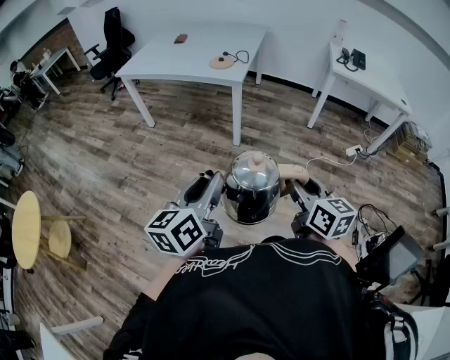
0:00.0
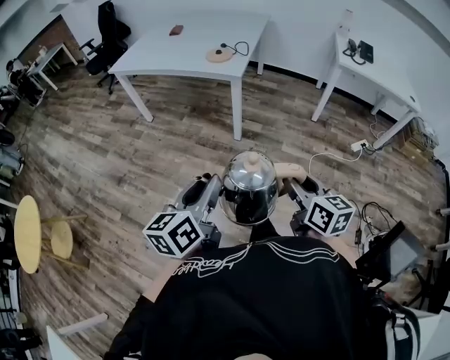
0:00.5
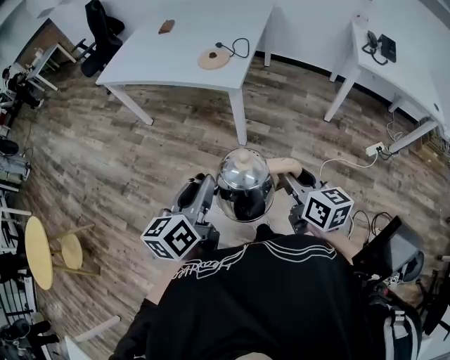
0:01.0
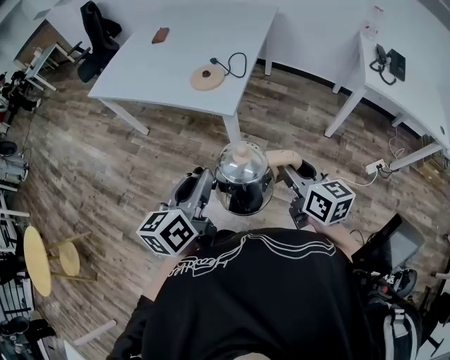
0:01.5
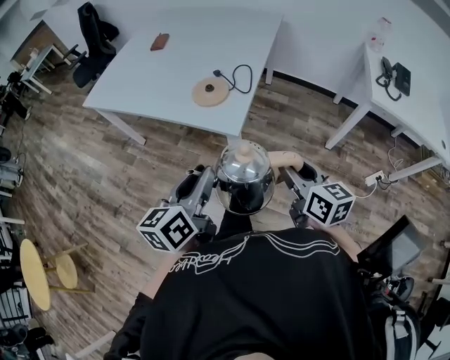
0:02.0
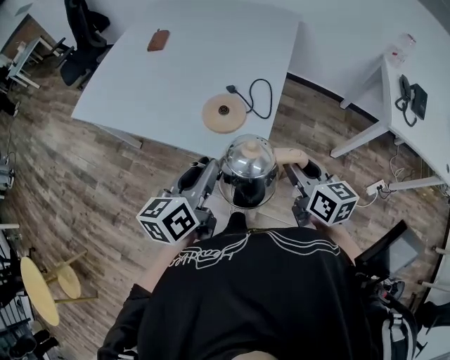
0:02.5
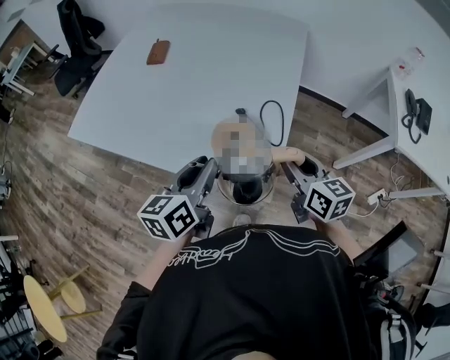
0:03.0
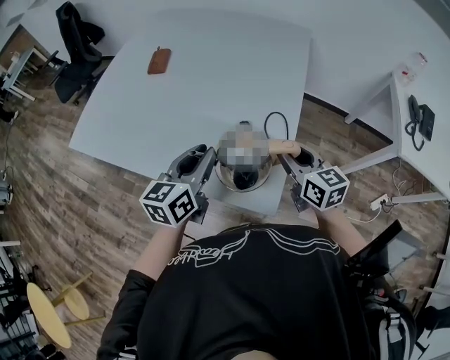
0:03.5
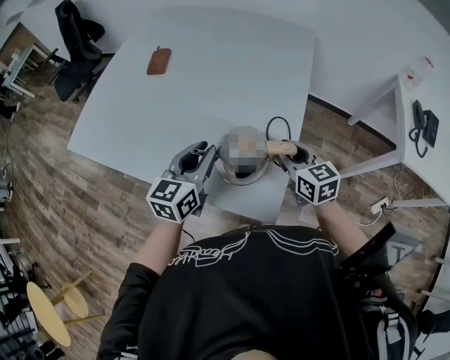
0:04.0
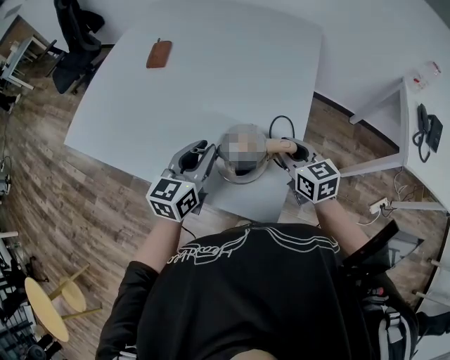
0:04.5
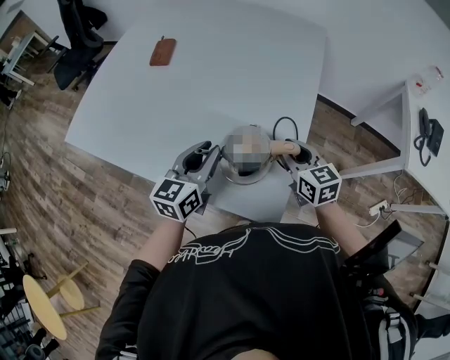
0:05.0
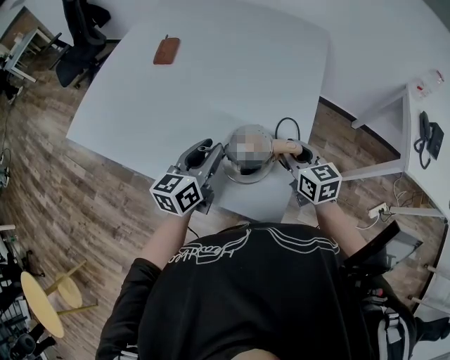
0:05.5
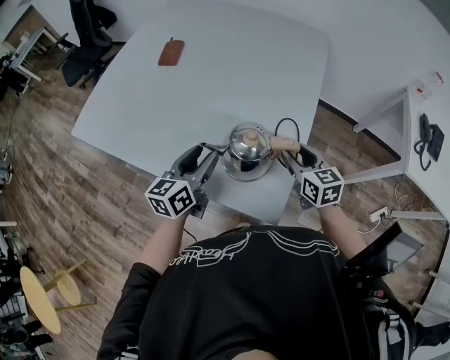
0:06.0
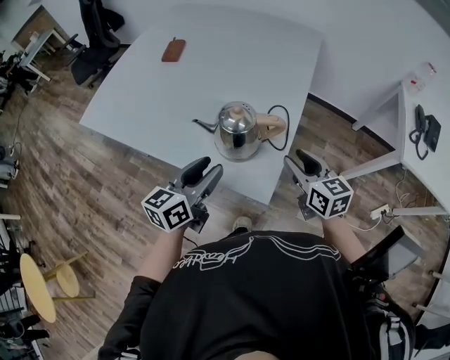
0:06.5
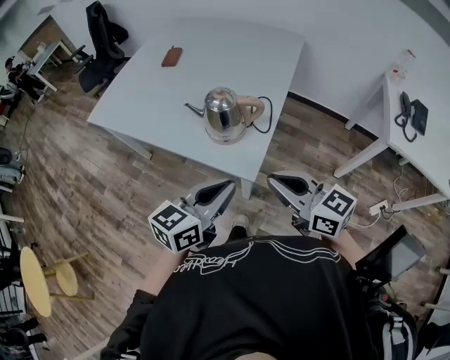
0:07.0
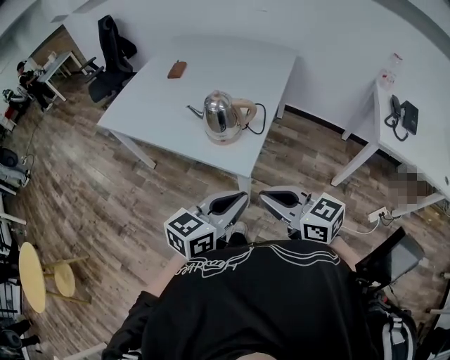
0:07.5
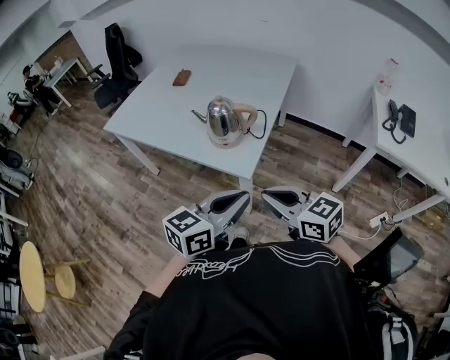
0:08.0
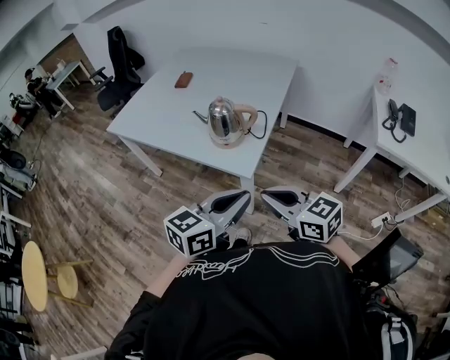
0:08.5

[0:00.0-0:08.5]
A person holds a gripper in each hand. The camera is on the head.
0:00.0 to 0:02.0: The two grippers travel together, forward, about 50 cm.
0:02.0 to 0:04.0: The two grippers travel together, forward, some 40 cm. The left gripper swivels roughly 20 degrees.
0:04.0 to 0:06.5: The two grippers go about 10 cm backward. The left gripper opens.
0:06.5 to 0:08.5: The left gripper heads backward and to the right, covering roughly 30 cm, and closes. Meanwhile the right gripper travels backward by some 30 cm, turns by some 30 degrees, and closes its fingers.

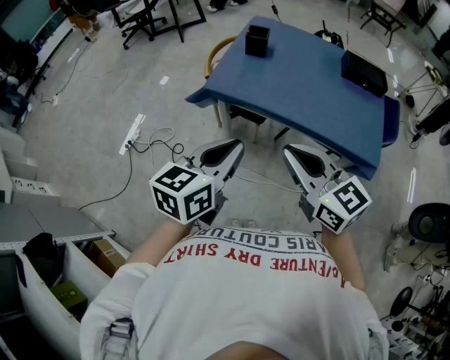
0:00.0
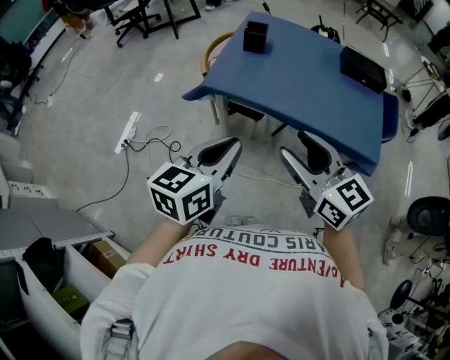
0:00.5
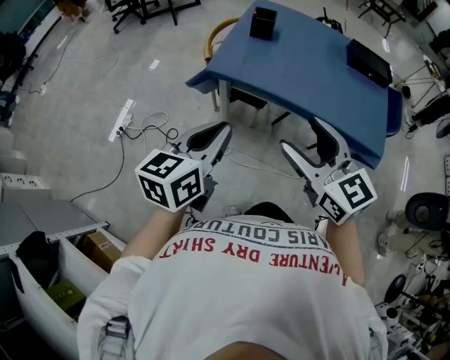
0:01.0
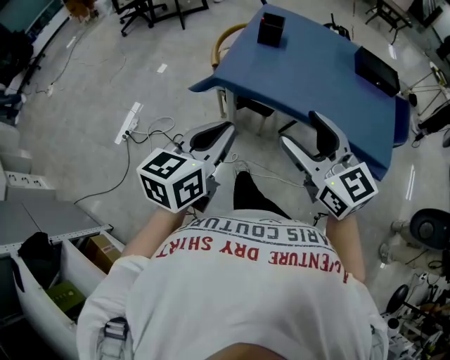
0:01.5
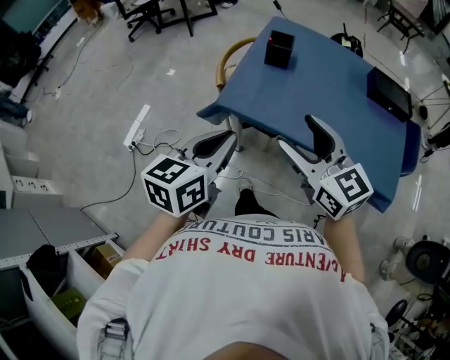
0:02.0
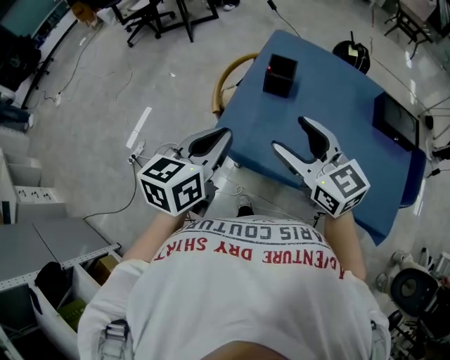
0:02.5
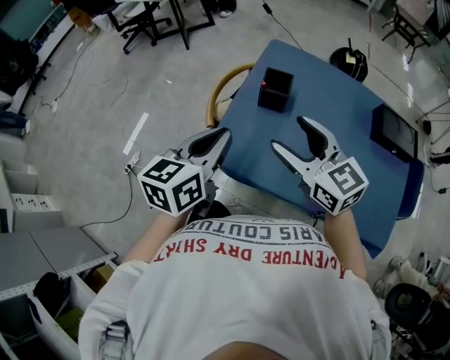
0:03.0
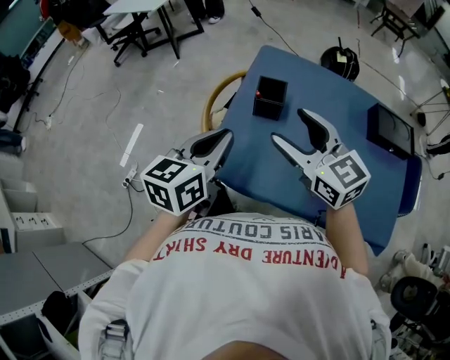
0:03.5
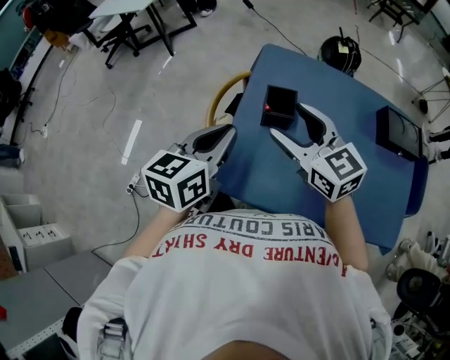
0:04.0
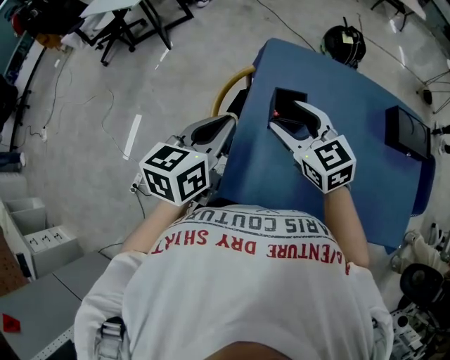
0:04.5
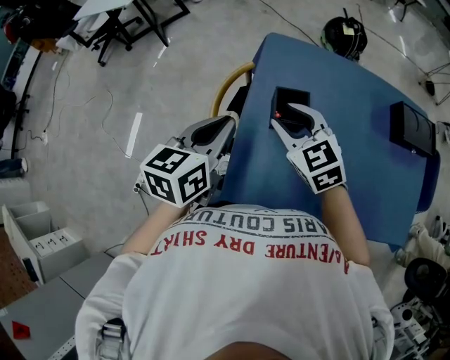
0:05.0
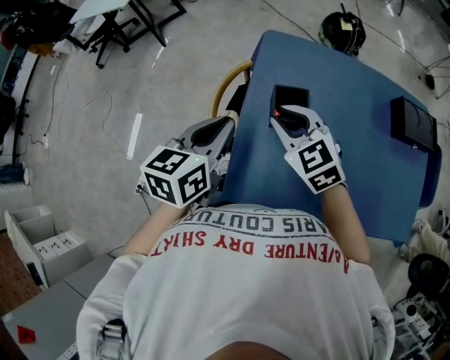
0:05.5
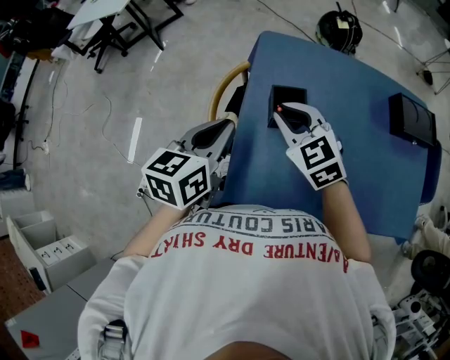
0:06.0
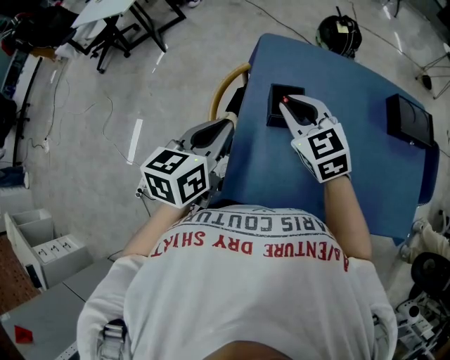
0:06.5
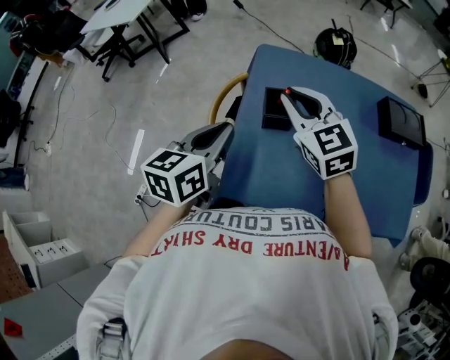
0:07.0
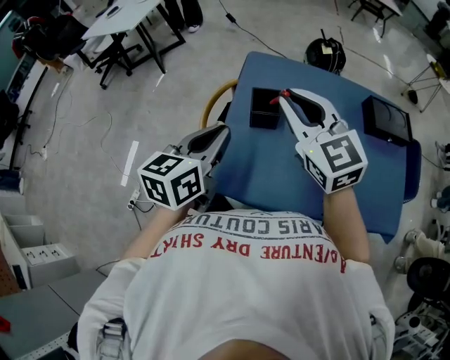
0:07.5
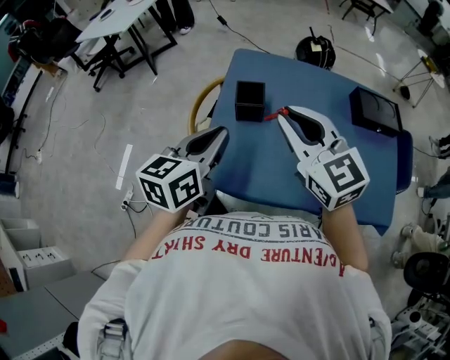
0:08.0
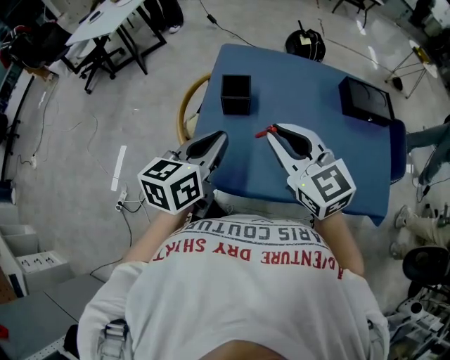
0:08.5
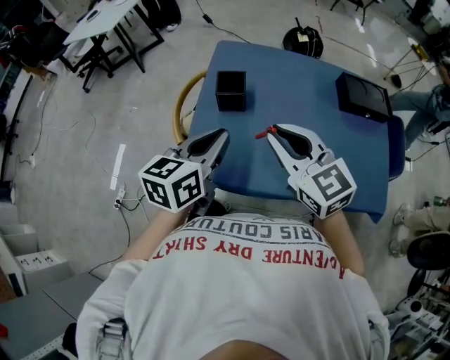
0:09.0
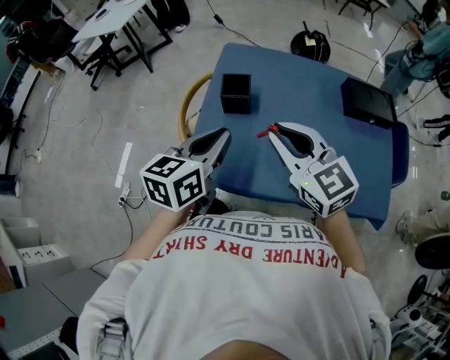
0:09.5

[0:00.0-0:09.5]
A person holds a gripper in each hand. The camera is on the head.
0:00.0 to 0:02.0: The right gripper moves forward, about 15 cm, and opens up. Meanwhile the left gripper shifts some 15 cm forward and to the left.
0:02.0 to 0:04.0: Both grippers travel together forward, roughly 30 cm.
0:04.0 to 0:05.5: The left gripper moves forward, some 5 cm, while the right gripper is displaced downward and forward by some 10 cm, changes its angle by some 20 degrees, and closes its fingers.
0:05.5 to 0:07.5: The left gripper heads backward and upward, covering about 10 cm, while the right gripper heads upward, covering about 15 cm, and turns by some 20 degrees.
0:07.5 to 0:09.5: The right gripper heads backward and to the right, covering roughly 10 cm, while the left gripper goes roughly 10 cm to the right.

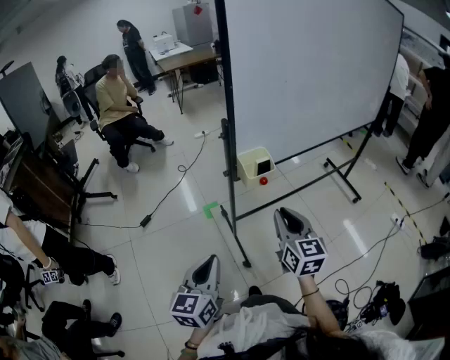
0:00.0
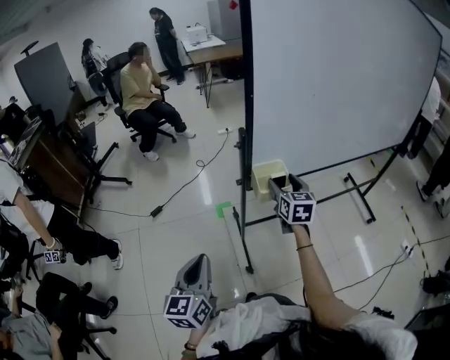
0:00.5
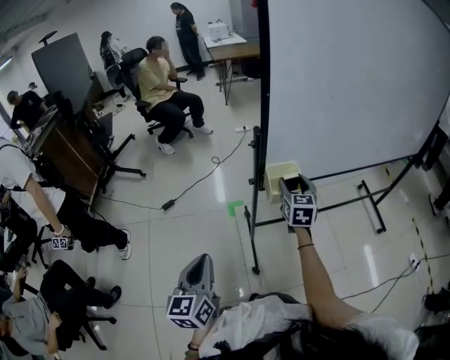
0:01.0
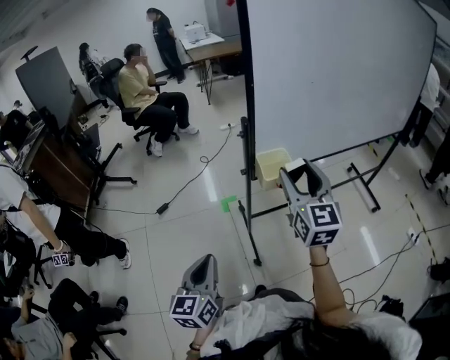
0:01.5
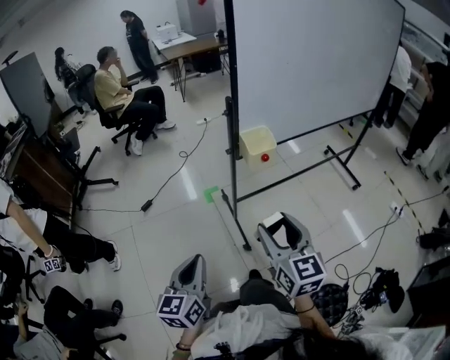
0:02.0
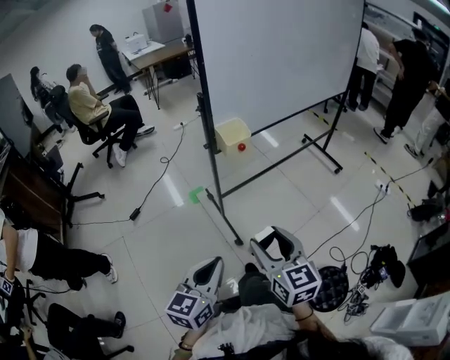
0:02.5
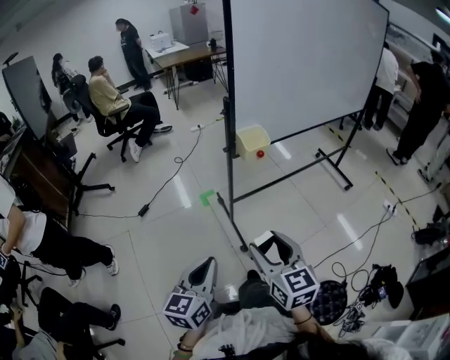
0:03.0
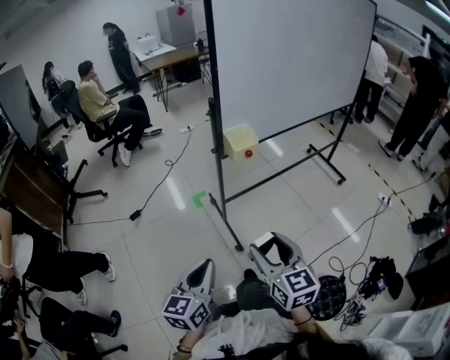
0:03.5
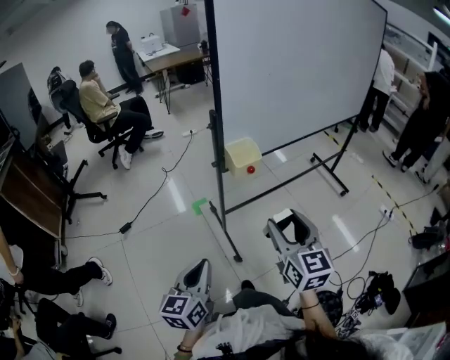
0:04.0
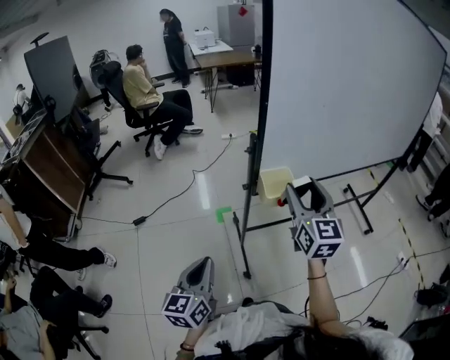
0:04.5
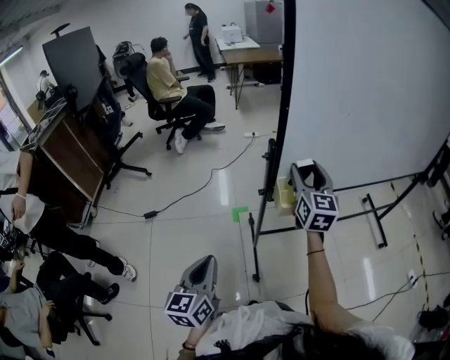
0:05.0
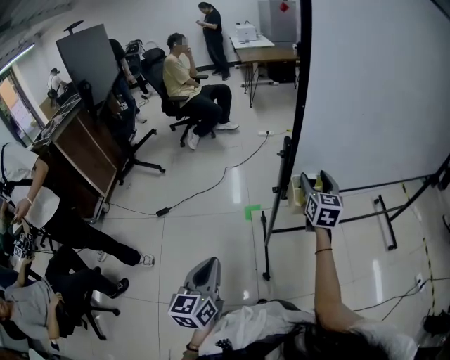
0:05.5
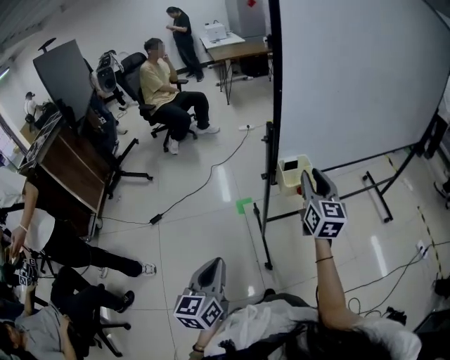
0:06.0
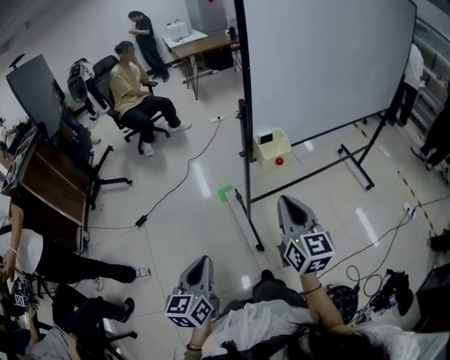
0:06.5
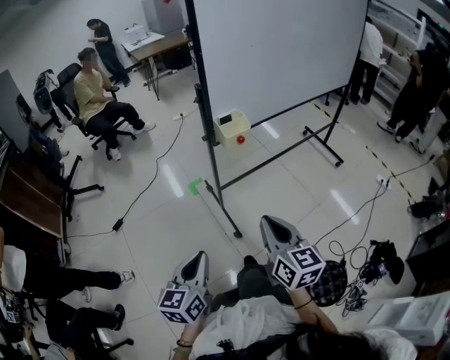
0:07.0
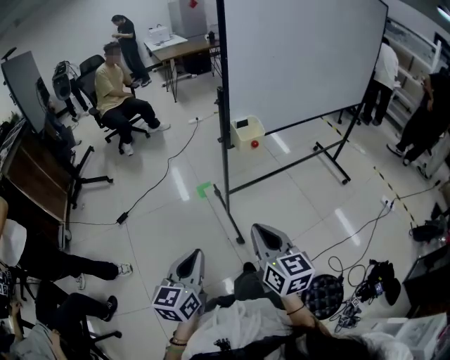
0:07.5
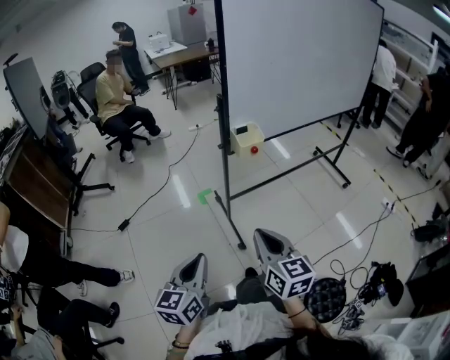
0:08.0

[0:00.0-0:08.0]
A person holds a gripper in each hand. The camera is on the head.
0:00.0 to 0:02.0: The two grippers go some 15 cm backward and to the left. The right gripper opens up.
0:02.0 to 0:04.0: The right gripper shifts approximately 5 cm to the right, and moves roughly 10 cm backward and comes back; the left gripper moves roughly 5 cm.
0:04.0 to 0:06.0: The left gripper heads forward, covering about 5 cm. The right gripper shifts some 25 cm forward, and closes.
0:06.0 to 0:08.0: The left gripper travels backward by approximately 15 cm; the right gripper goes about 35 cm backward, and closes up.

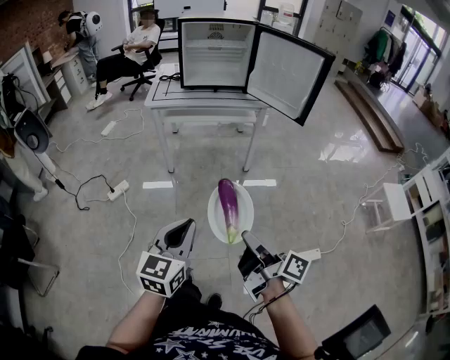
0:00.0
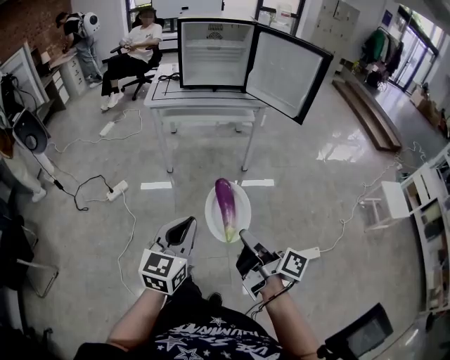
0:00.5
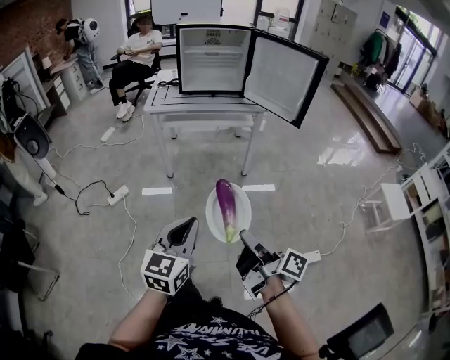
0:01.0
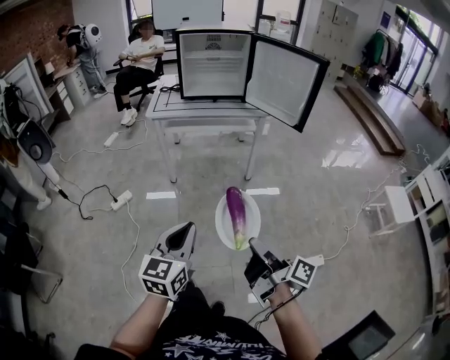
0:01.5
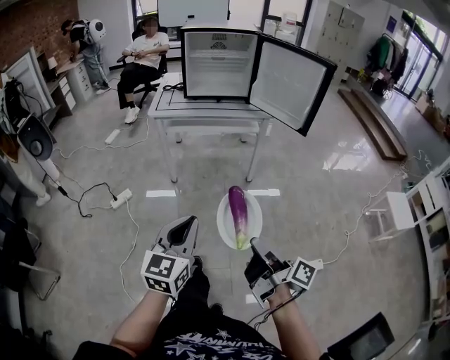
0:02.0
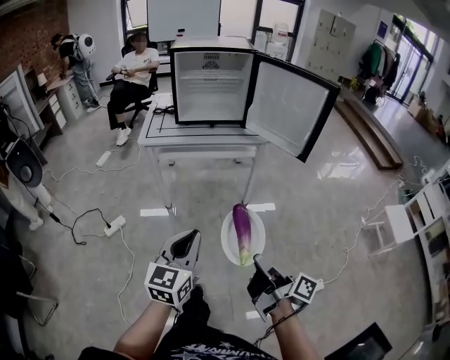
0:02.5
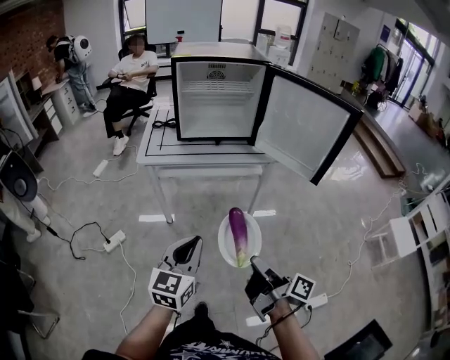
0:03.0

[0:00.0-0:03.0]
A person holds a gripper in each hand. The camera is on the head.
0:01.5 to 0:03.0: The left gripper shifts by some 25 cm.
